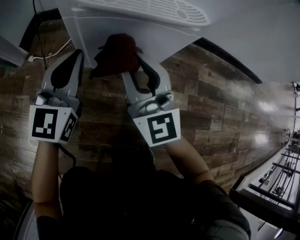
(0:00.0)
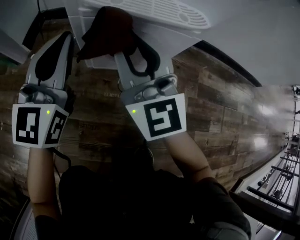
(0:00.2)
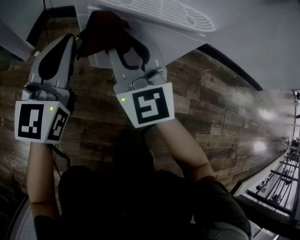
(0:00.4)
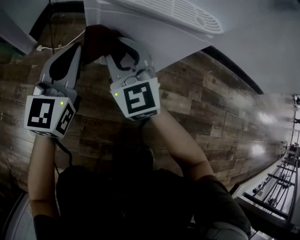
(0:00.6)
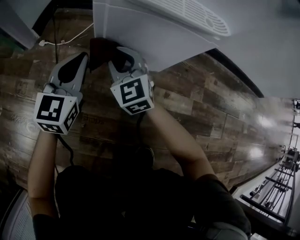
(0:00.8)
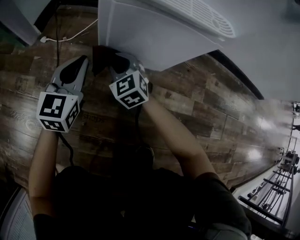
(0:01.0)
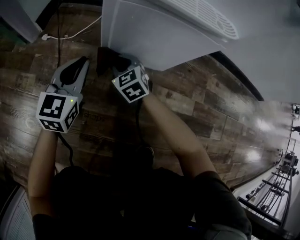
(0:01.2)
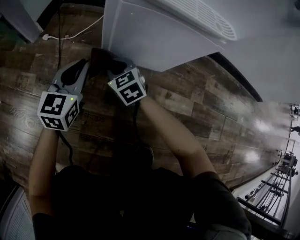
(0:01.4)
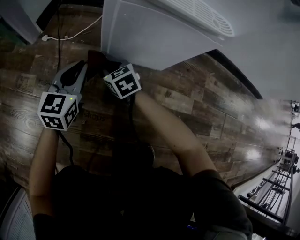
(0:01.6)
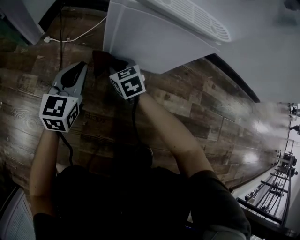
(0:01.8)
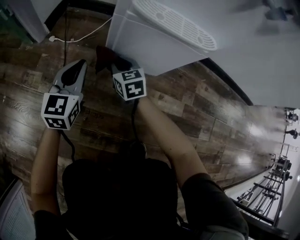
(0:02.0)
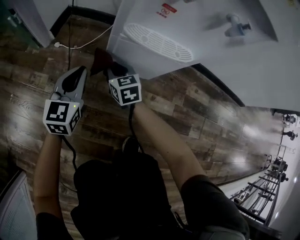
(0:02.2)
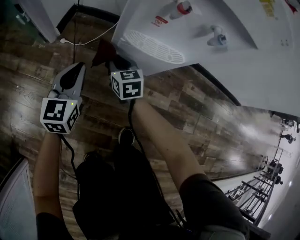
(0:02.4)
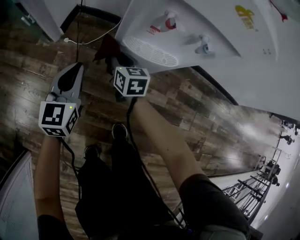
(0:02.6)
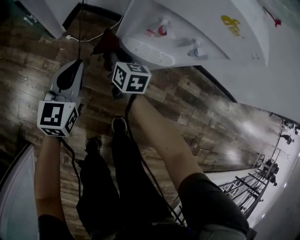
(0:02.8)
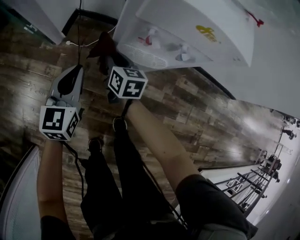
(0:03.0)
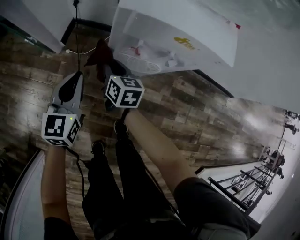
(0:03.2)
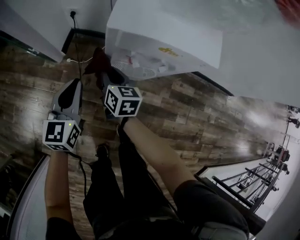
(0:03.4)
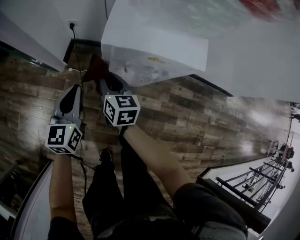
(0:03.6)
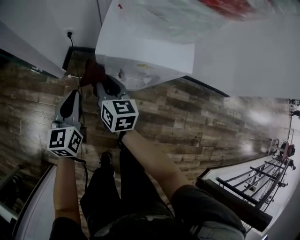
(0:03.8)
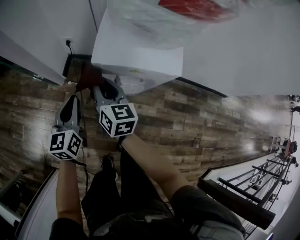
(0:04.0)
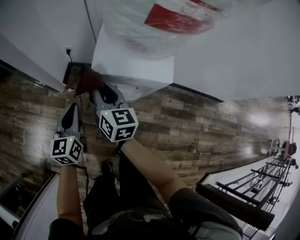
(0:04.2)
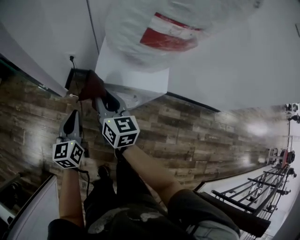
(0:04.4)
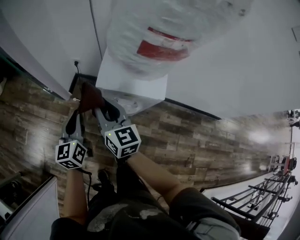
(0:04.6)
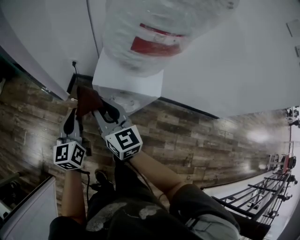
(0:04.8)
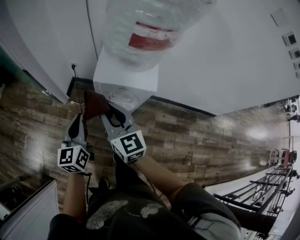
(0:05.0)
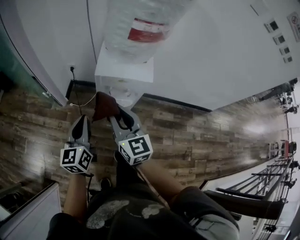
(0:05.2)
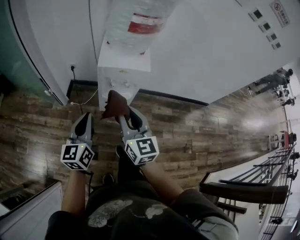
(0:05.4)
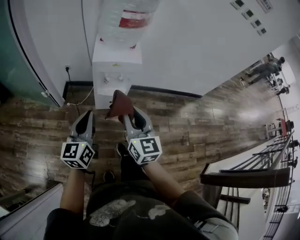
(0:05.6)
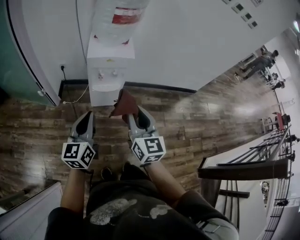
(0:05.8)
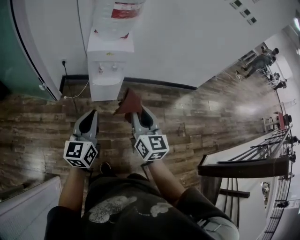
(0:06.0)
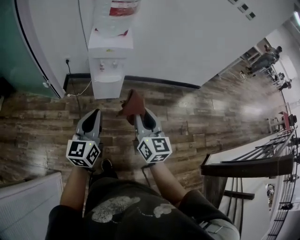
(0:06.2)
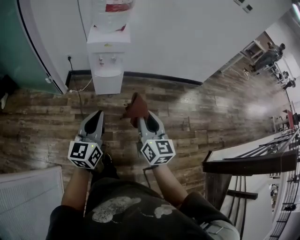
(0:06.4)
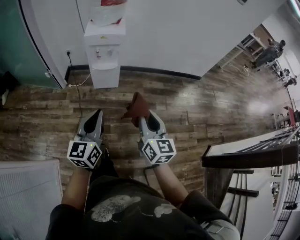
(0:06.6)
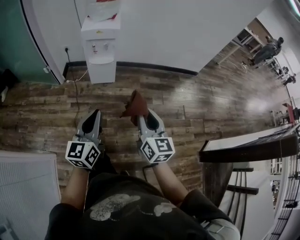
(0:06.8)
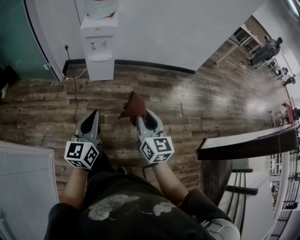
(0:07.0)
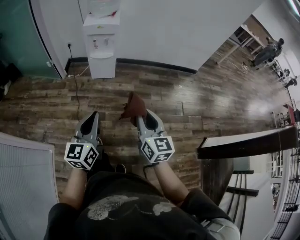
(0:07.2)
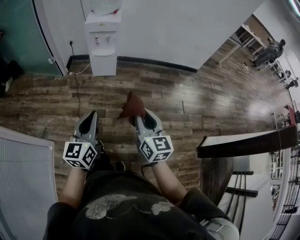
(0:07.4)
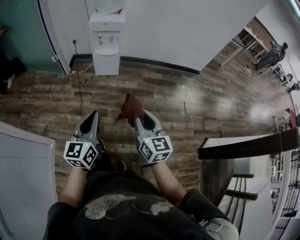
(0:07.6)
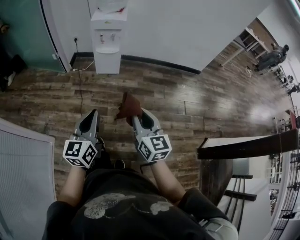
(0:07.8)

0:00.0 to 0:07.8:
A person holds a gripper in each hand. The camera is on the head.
0:00.0 to 0:01.6: The right gripper moves downward, about 25 cm, and points its fingers approximately 50 degrees further downward. The left gripper shifts about 15 cm downward and to the left.
0:01.6 to 0:03.2: The two grippers go some 40 cm upward. The right gripper turns by approximately 40 degrees.
0:03.2 to 0:04.6: The right gripper heads upward, covering some 35 cm, and changes its angle by some 30 degrees. Meanwhile the left gripper travels upward by approximately 20 cm, and swivels approximately 20 degrees.
0:04.6 to 0:06.2: The right gripper changes place by some 40 cm, and changes its angle by some 30 degrees. The left gripper ends up some 40 cm from where it was, and swivels some 30 degrees.
0:06.2 to 0:07.8: Both grippers travel together backward, about 30 cm.

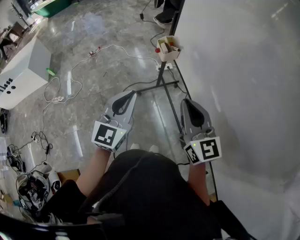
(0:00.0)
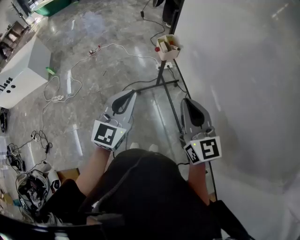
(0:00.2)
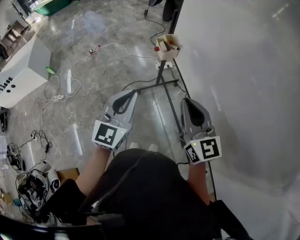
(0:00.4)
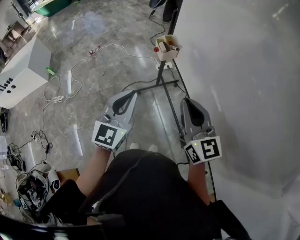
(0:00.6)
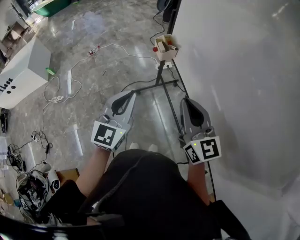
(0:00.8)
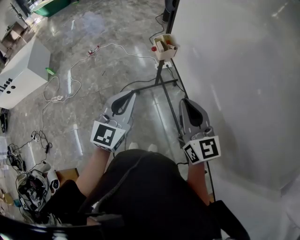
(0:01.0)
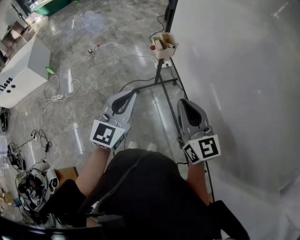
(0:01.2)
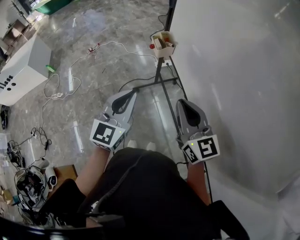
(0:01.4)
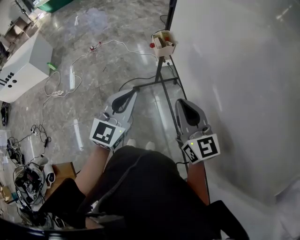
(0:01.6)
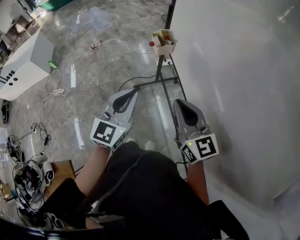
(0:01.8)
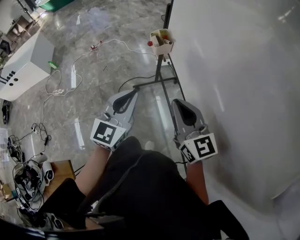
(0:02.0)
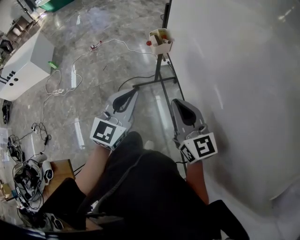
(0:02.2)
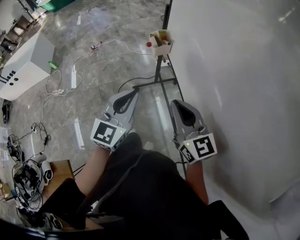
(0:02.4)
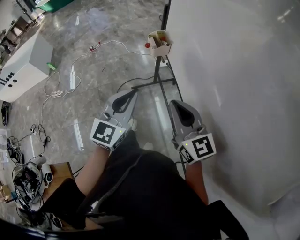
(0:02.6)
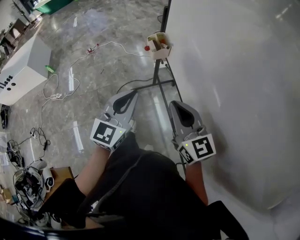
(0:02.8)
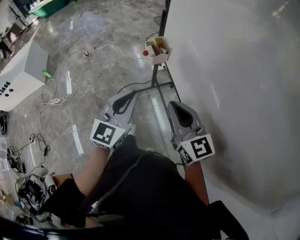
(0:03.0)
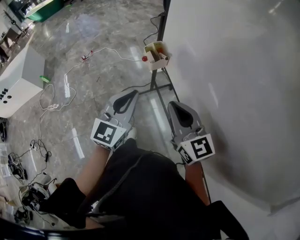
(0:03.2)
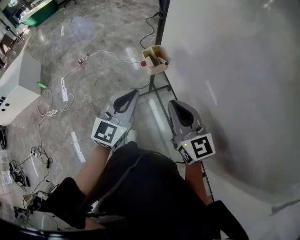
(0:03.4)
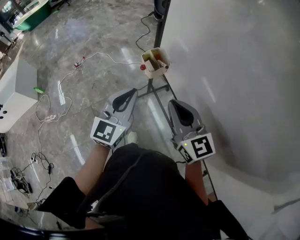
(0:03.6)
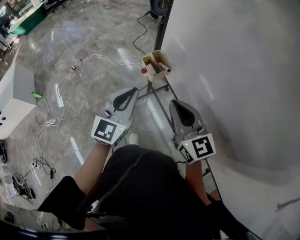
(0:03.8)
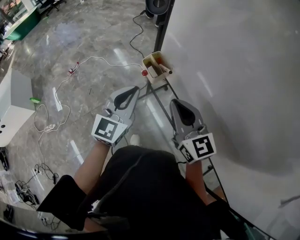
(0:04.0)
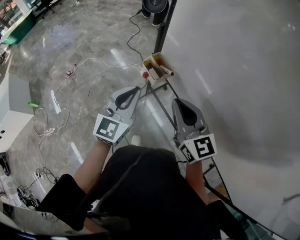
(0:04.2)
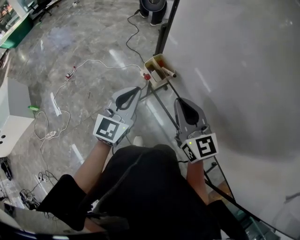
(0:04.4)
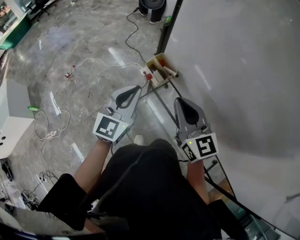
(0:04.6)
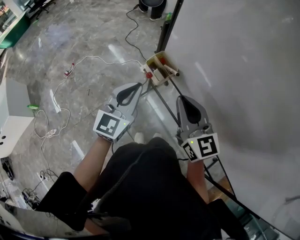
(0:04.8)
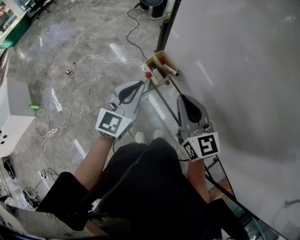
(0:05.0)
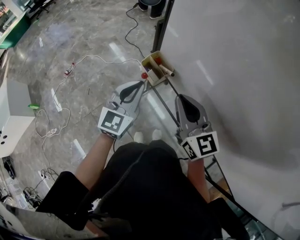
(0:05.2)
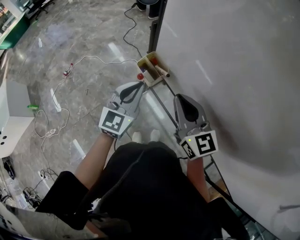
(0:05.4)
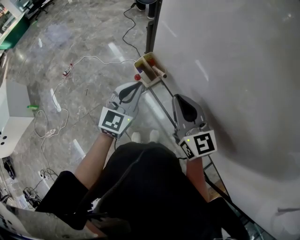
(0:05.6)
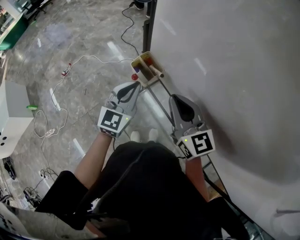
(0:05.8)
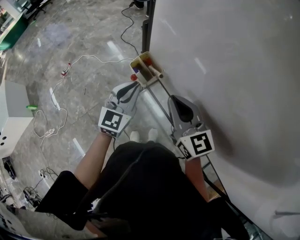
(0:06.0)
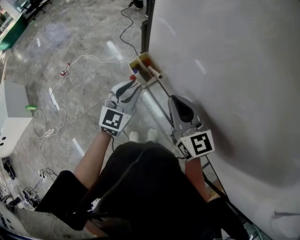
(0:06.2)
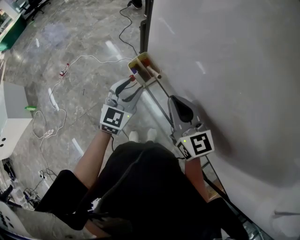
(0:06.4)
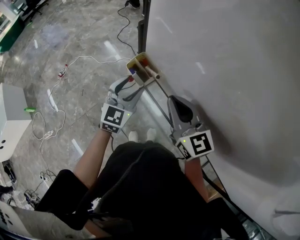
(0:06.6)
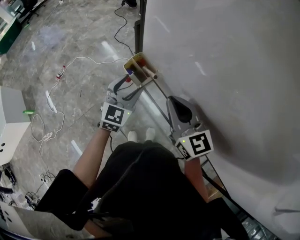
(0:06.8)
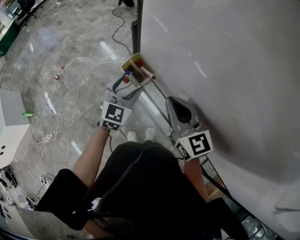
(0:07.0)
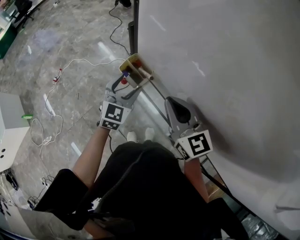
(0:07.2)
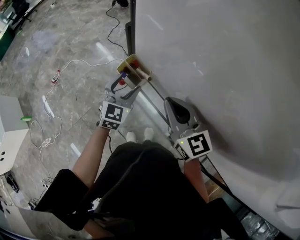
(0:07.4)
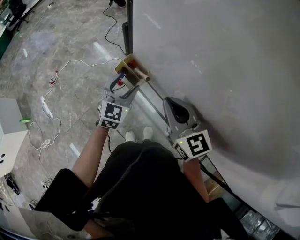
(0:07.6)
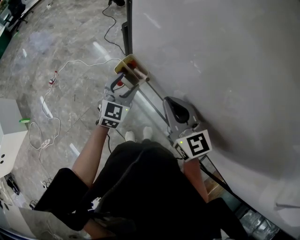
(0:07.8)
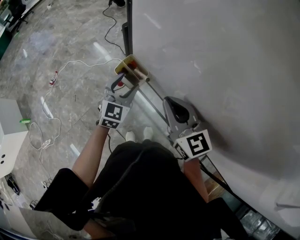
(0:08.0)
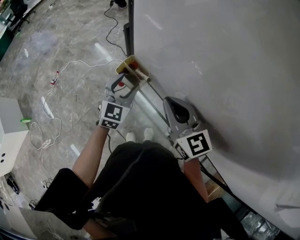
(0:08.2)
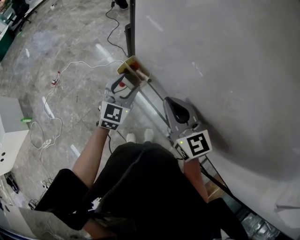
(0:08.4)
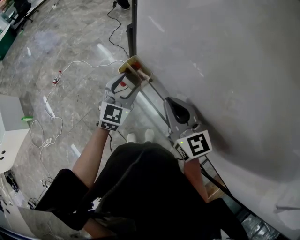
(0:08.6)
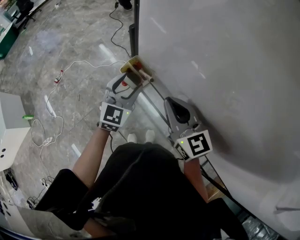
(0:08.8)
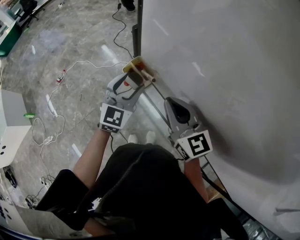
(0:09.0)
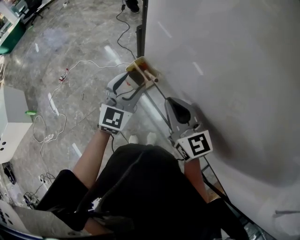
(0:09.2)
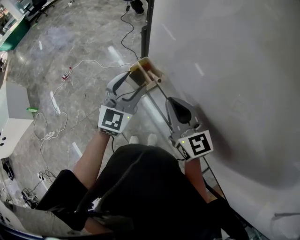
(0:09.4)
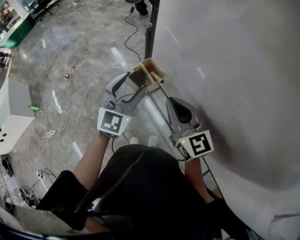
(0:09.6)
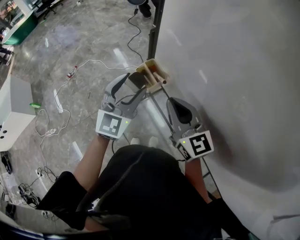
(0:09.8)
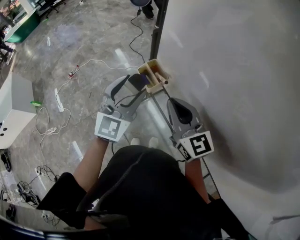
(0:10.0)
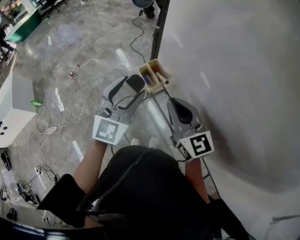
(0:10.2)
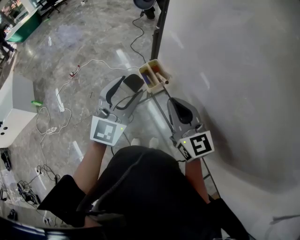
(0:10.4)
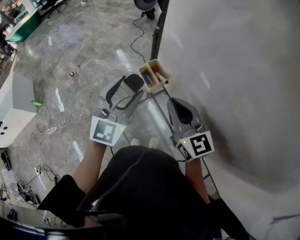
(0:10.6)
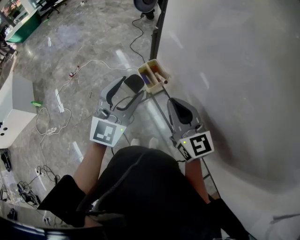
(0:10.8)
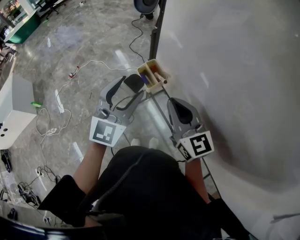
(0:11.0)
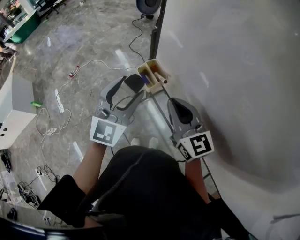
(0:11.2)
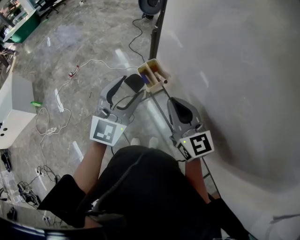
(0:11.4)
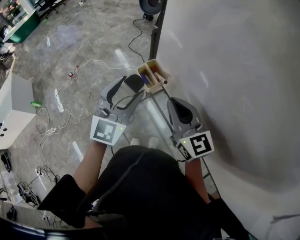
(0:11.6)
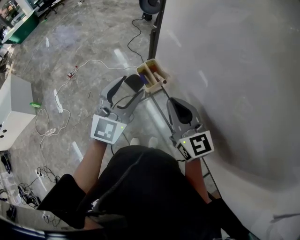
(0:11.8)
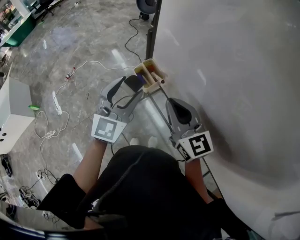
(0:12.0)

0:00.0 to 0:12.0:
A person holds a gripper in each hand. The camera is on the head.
0:00.0 to 0:01.6: The left gripper is displaced to the right by about 5 cm.
0:01.6 to 0:03.0: Both grippers travel together forward, about 5 cm.
0:03.0 to 0:04.4: The right gripper moves forward and to the left, some 15 cm. Meanwhile the left gripper shifts some 20 cm forward.
0:04.4 to 0:06.0: The right gripper shifts by about 5 cm; the left gripper goes roughly 10 cm forward, downward and to the right.
0:06.0 to 0:07.6: The left gripper is displaced forward by approximately 5 cm, and opens.
0:07.6 to 0:09.0: The left gripper is displaced upward by approximately 5 cm.
0:09.0 to 0:10.4: The left gripper heads upward, backward and to the left, covering about 15 cm.
0:10.4 to 0:12.0: The grippers stay close to where they were, moving slightly.

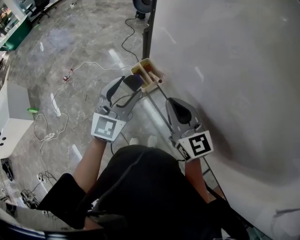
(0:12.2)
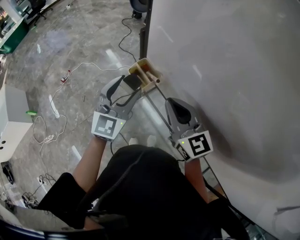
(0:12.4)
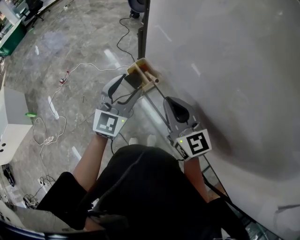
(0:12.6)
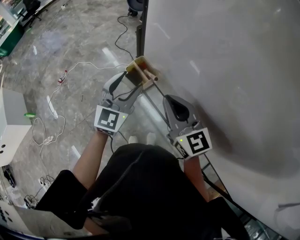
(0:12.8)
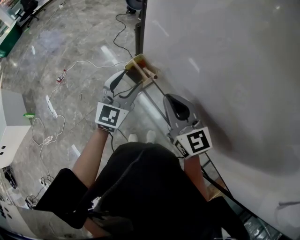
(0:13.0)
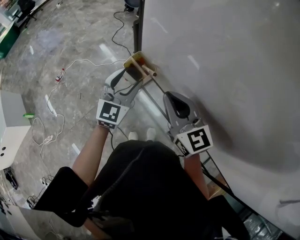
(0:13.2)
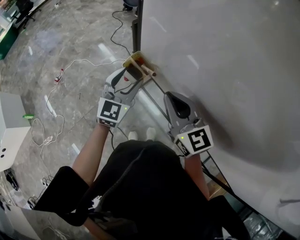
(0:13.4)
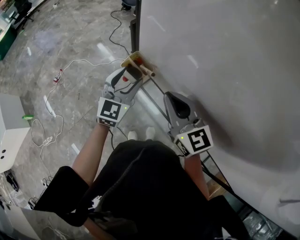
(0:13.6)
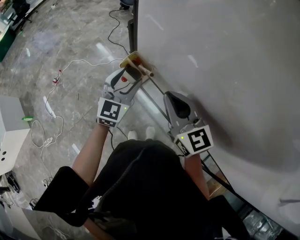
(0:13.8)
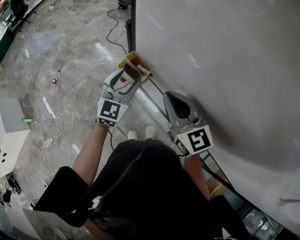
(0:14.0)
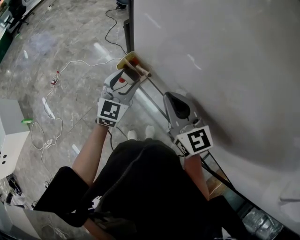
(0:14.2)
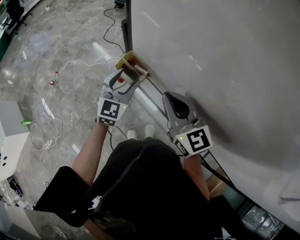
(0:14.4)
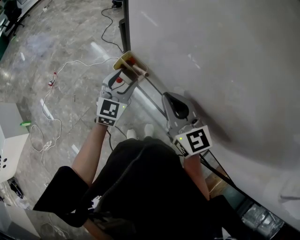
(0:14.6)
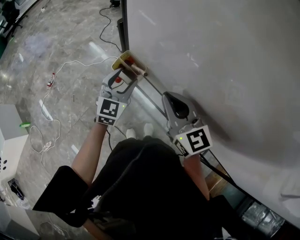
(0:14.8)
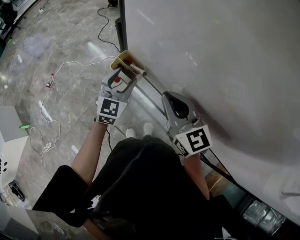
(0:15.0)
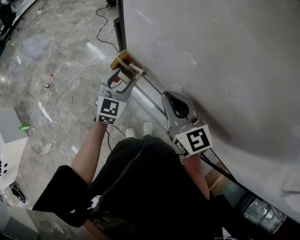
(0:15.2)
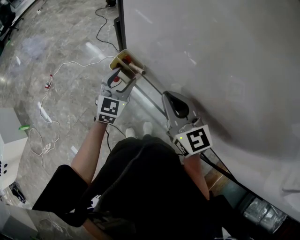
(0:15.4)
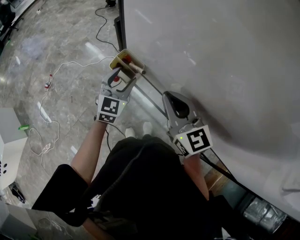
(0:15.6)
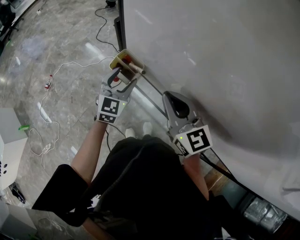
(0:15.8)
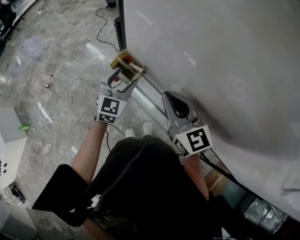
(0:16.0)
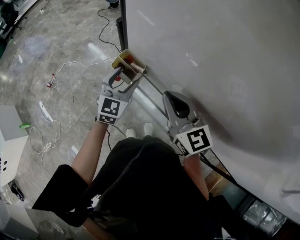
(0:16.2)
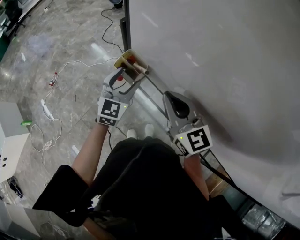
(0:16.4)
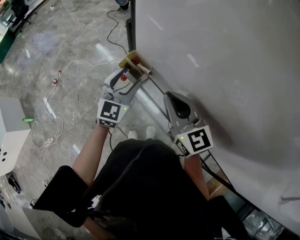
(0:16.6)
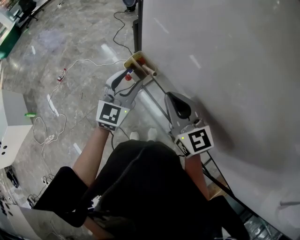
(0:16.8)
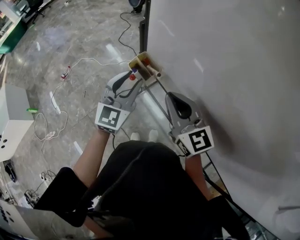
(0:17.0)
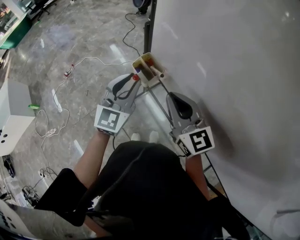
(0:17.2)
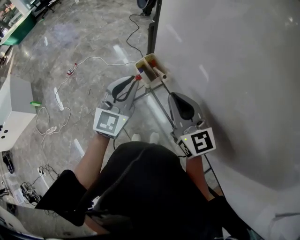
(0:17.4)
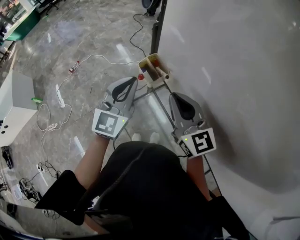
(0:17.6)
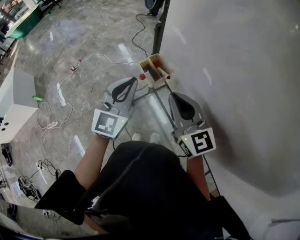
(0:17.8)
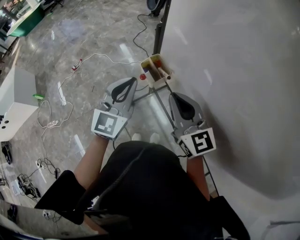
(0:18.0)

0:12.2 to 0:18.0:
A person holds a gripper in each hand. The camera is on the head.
0:12.2 to 0:13.6: The left gripper moves downward and forward, some 10 cm.
0:13.6 to 0:15.0: The left gripper travels downward by roughly 5 cm.
0:15.0 to 0:16.6: The left gripper ends up about 5 cm from where it was.
0:16.6 to 0:18.0: The left gripper goes some 10 cm upward, backward and to the left, and closes.
